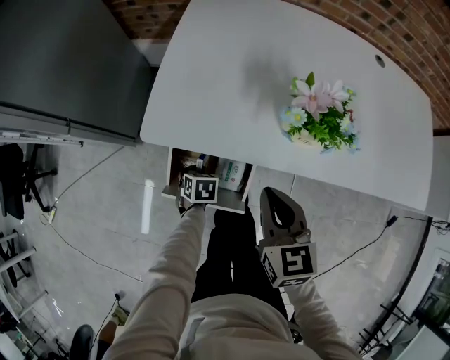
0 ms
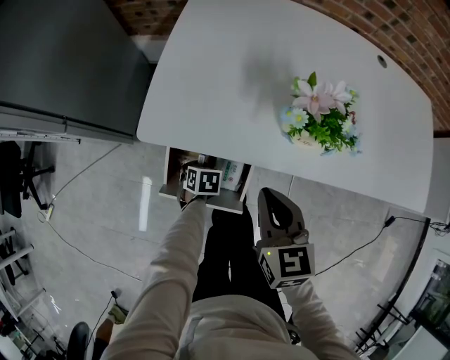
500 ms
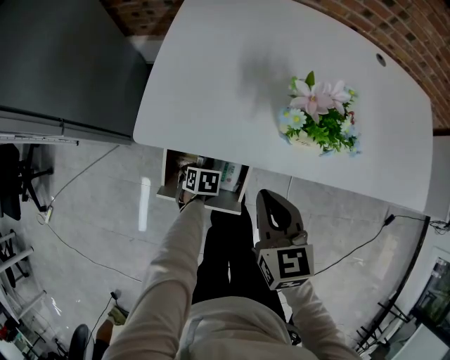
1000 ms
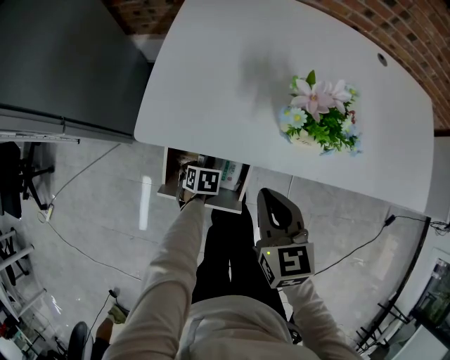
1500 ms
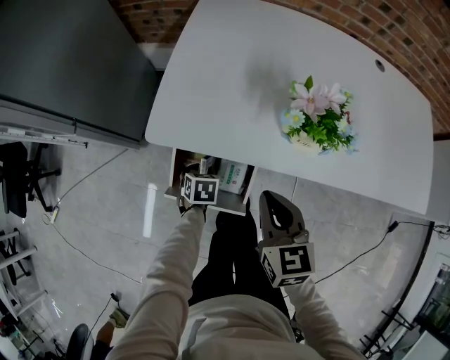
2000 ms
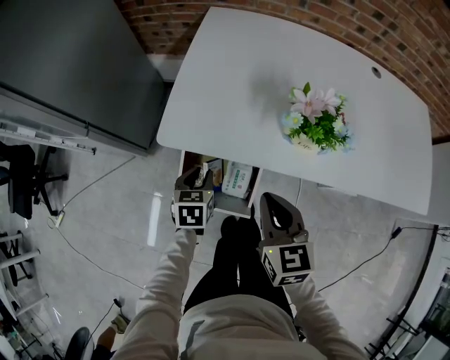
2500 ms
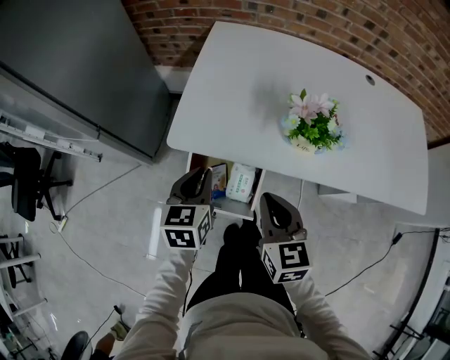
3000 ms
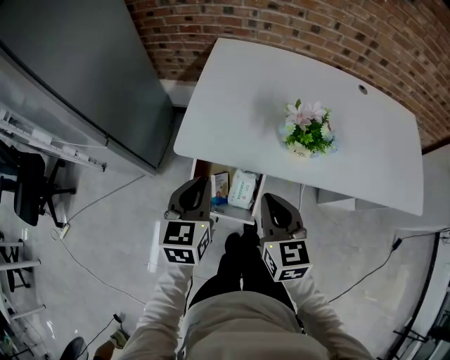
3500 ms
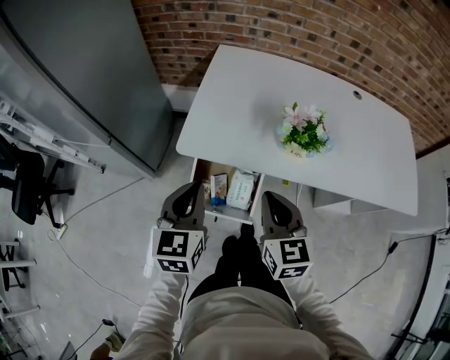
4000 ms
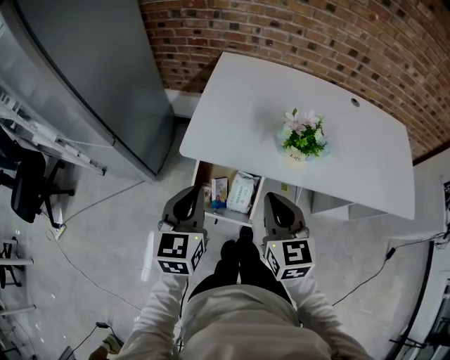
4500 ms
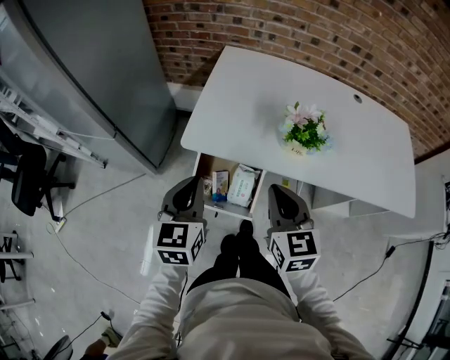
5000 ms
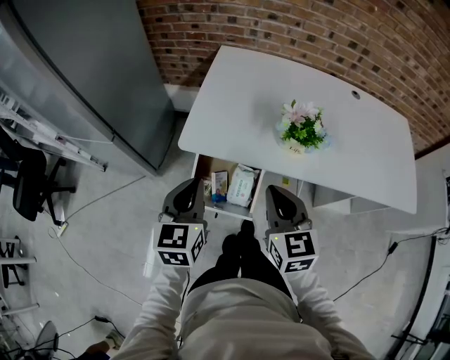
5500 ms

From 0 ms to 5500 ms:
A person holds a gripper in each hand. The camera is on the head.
From 0 ms to 2000 ms: The grippers make only small movements.
From 2000 ms to 3500 ms: The right gripper shifts some 5 cm upward. Meanwhile the left gripper moves upward, roughly 35 cm, angles its fingers upward, by roughly 40 degrees, and closes.
From 3500 ms to 5500 ms: The left gripper ends up some 5 cm from where it was.

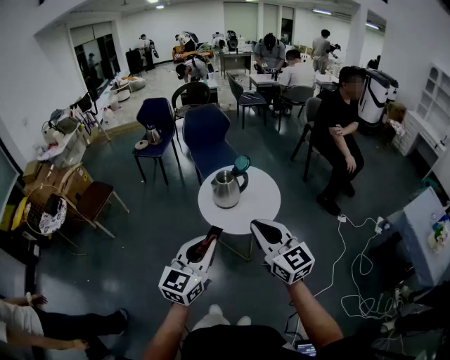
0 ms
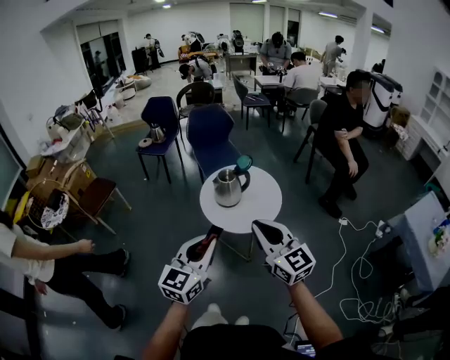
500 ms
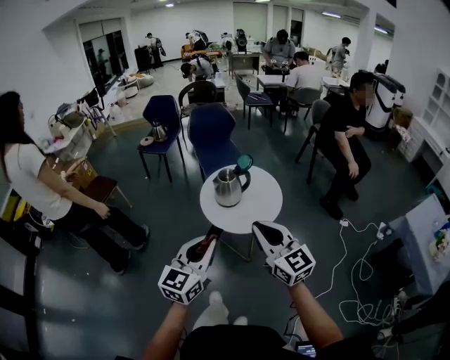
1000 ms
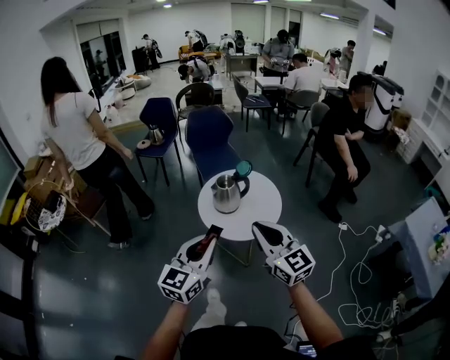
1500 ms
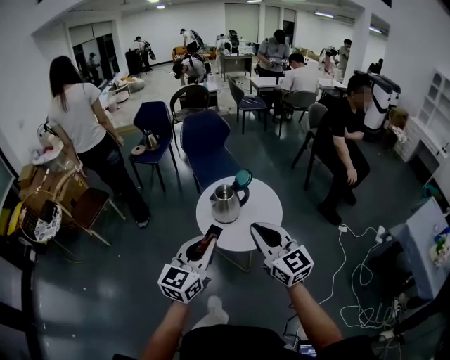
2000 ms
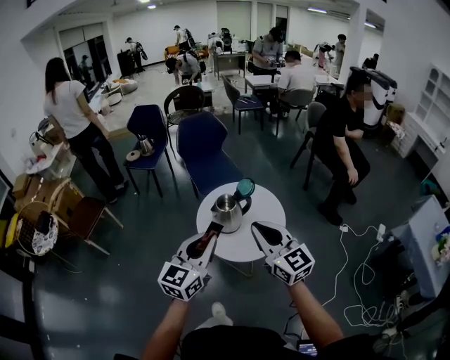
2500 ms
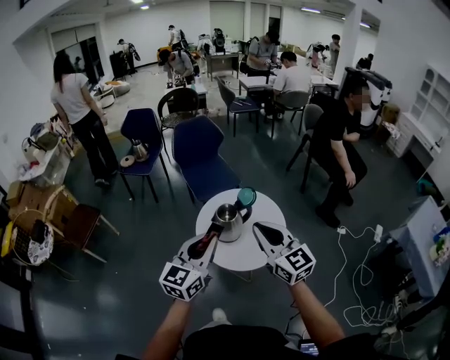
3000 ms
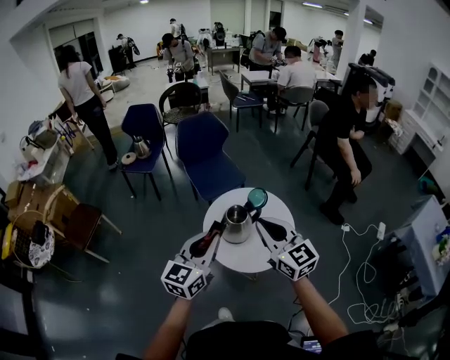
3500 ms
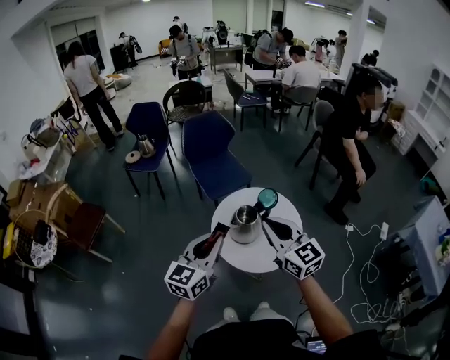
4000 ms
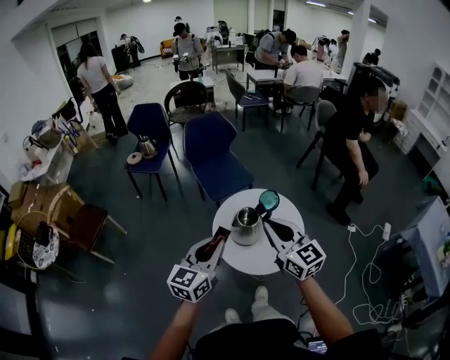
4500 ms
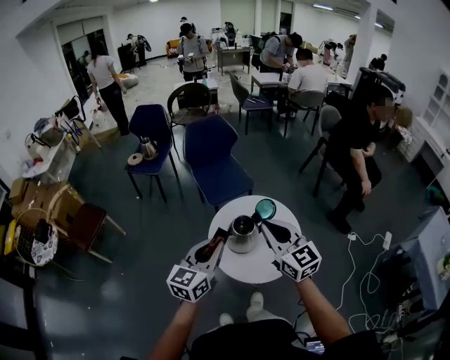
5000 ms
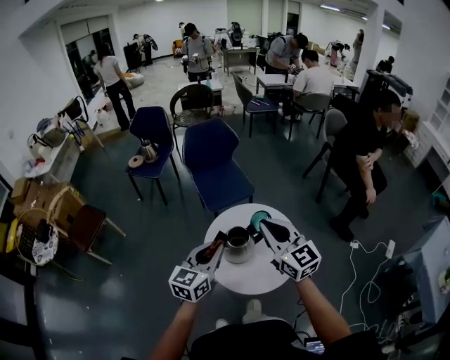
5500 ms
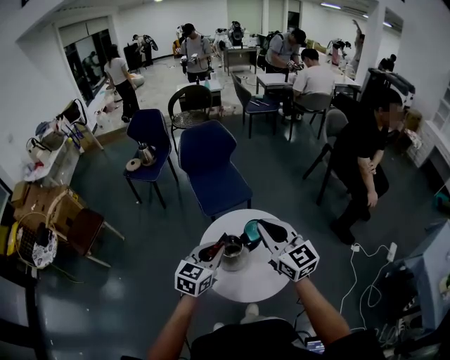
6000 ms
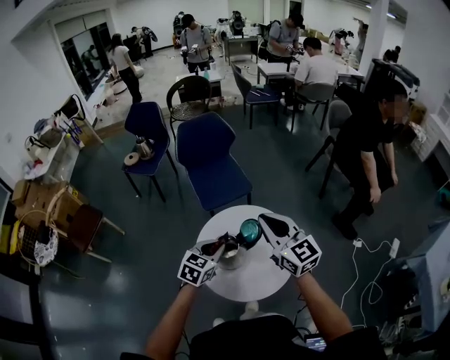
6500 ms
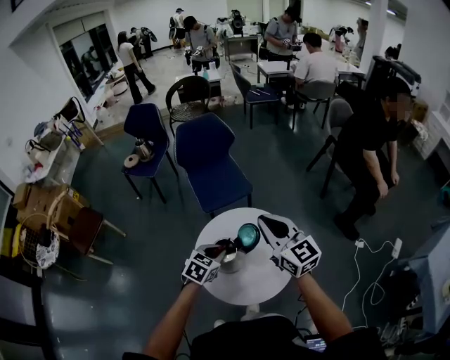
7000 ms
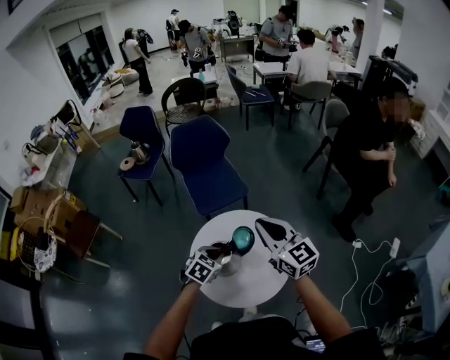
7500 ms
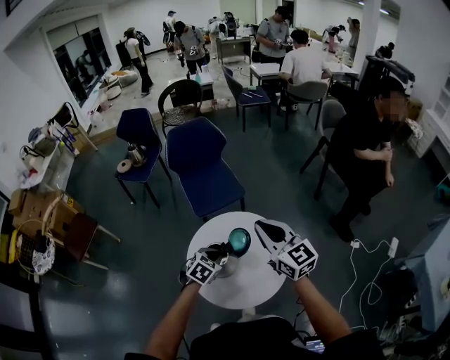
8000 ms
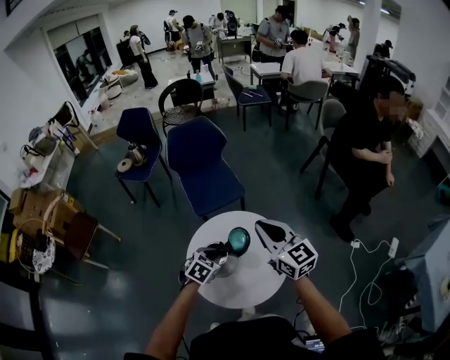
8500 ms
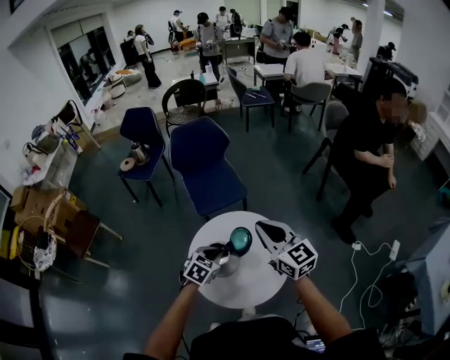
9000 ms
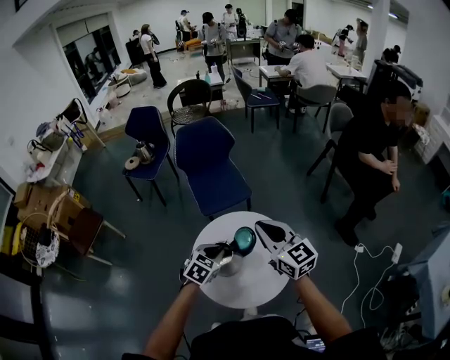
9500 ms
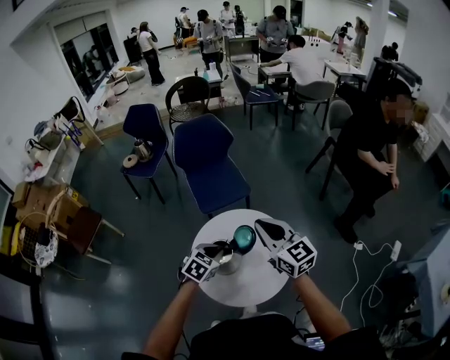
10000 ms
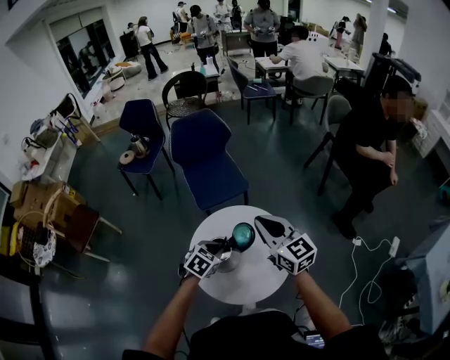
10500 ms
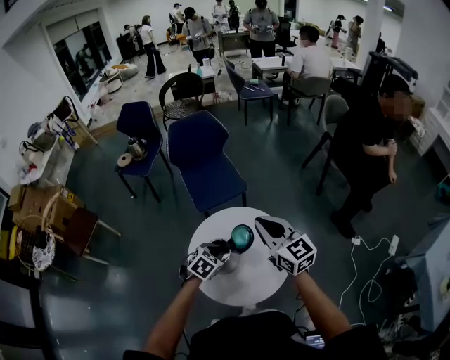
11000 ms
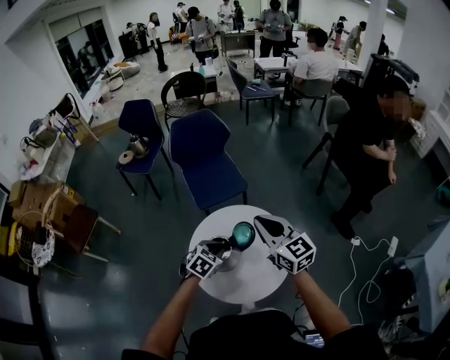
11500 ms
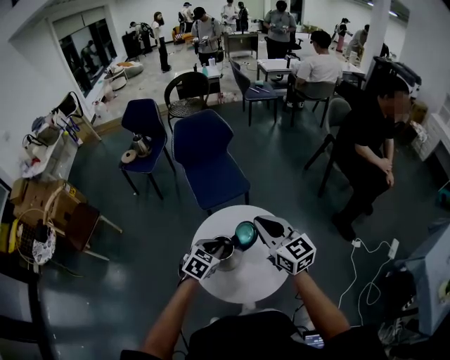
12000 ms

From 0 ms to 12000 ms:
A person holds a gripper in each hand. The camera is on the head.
From 0 ms to 2000 ms: The grippers both shift forward by roughly 10 cm.
From 2000 ms to 4000 ms: The grippers both shift forward and to the left by roughly 25 cm.
From 4000 ms to 6000 ms: The left gripper heads forward, to the right and downward, covering approximately 25 cm, while the right gripper shifts about 20 cm forward and to the right.
From 6000 ms to 8000 ms: The right gripper heads to the right and forward, covering approximately 10 cm, while the left gripper shifts approximately 20 cm downward, forward and to the right, and angles its fingers downward, by approximately 30 degrees.
From 8000 ms to 12000 ms: The grippers stay close to where they were, moving slightly.

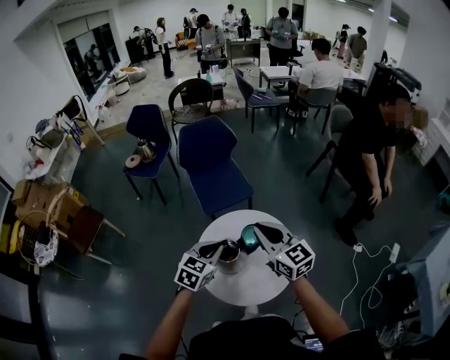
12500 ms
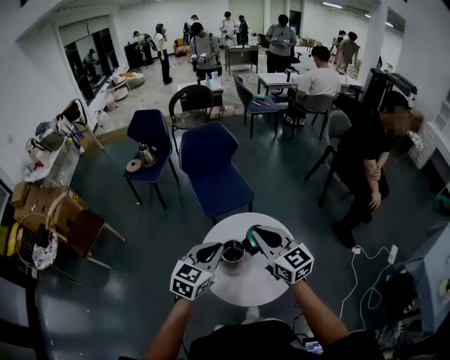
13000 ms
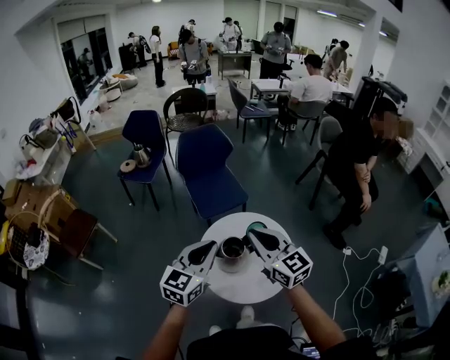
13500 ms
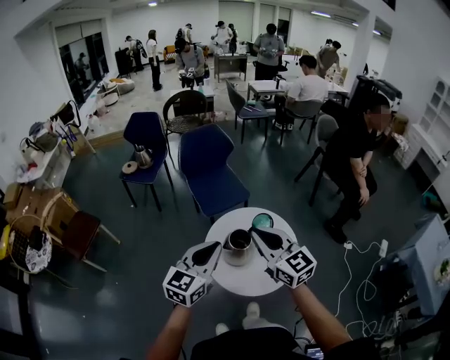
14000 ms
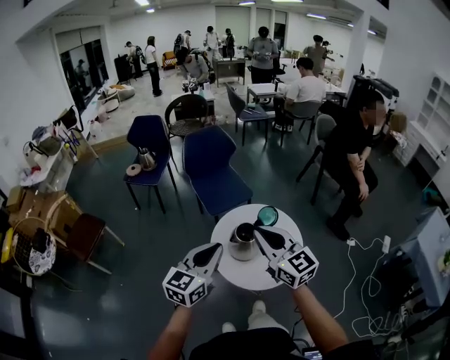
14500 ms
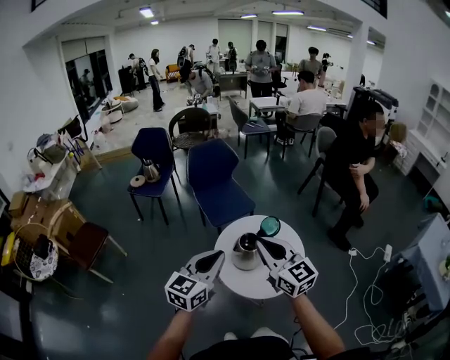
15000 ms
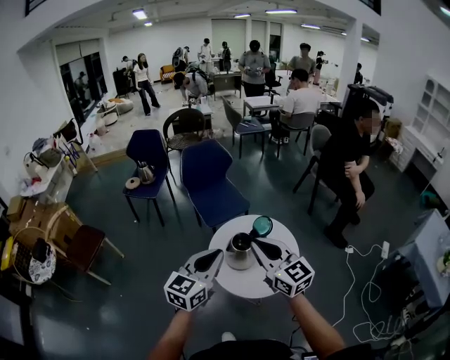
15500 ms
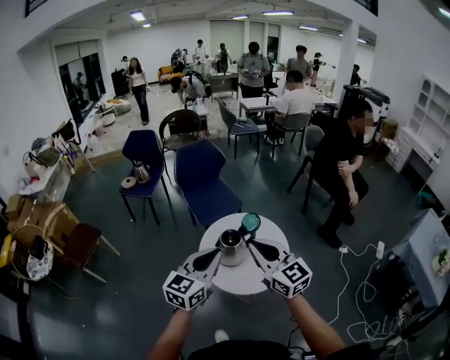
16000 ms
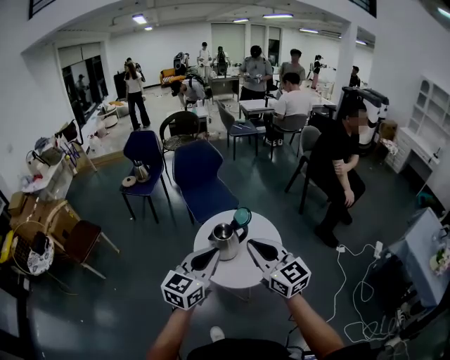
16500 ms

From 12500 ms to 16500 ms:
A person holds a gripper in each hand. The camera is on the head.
From 12500 ms to 14500 ms: The left gripper travels backward, to the left and upward by approximately 25 cm, and turns by approximately 30 degrees; the right gripper heads backward and to the left, covering approximately 25 cm.
From 14500 ms to 16500 ms: The right gripper travels backward and to the right by roughly 15 cm, while the left gripper travels to the right and backward by approximately 15 cm.

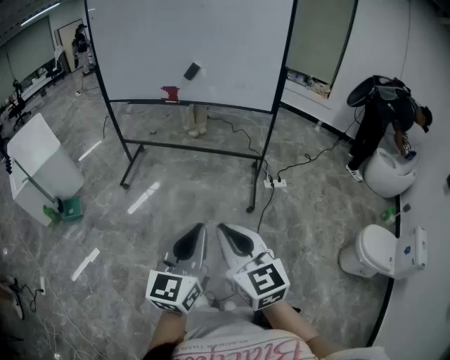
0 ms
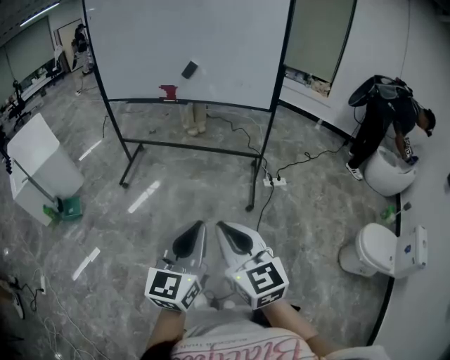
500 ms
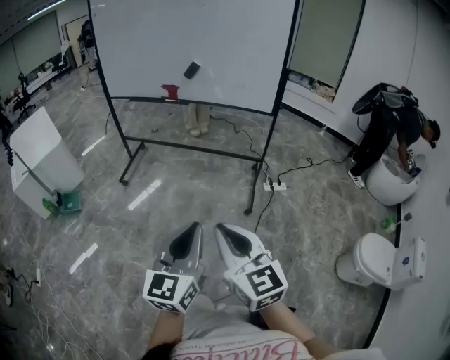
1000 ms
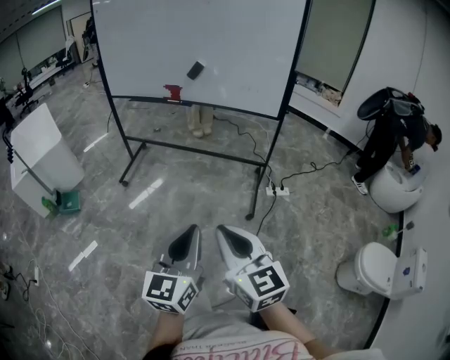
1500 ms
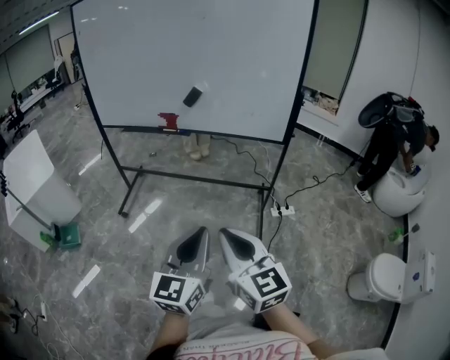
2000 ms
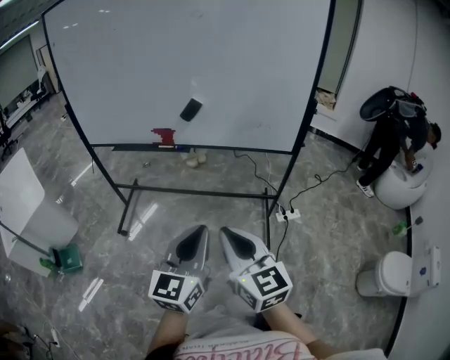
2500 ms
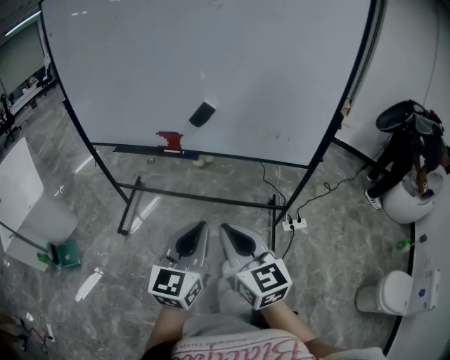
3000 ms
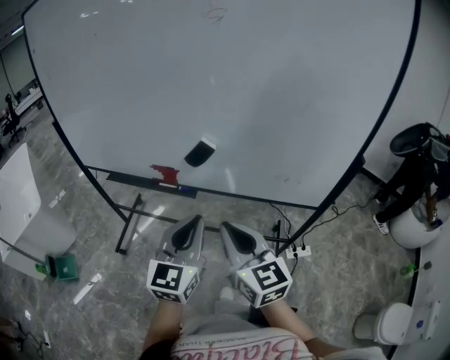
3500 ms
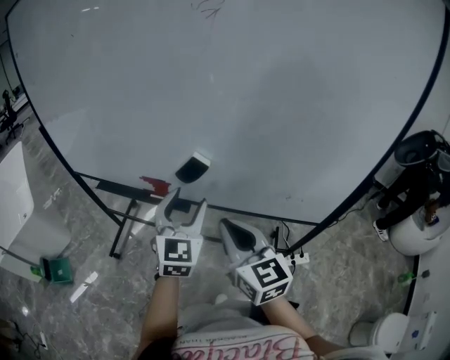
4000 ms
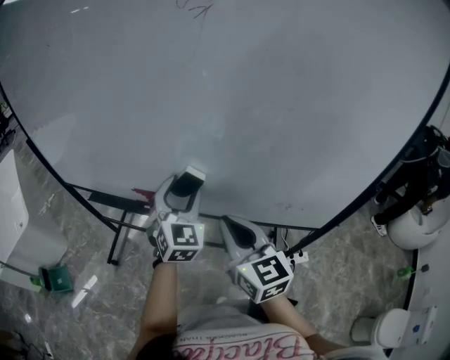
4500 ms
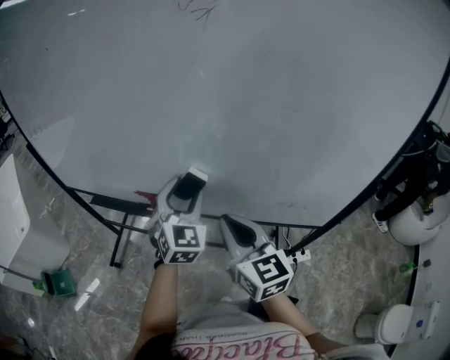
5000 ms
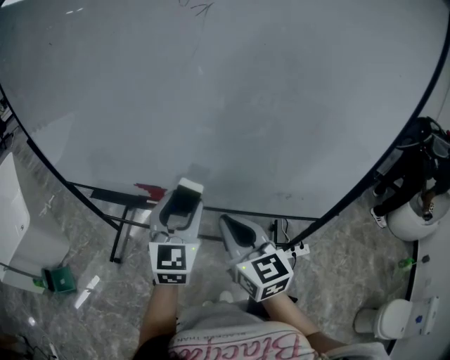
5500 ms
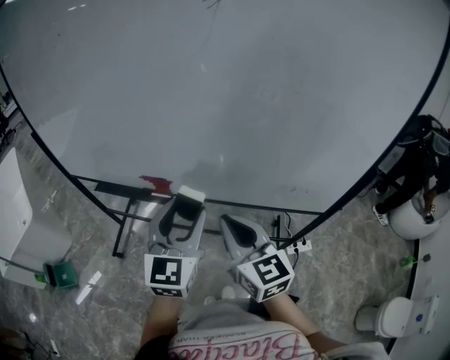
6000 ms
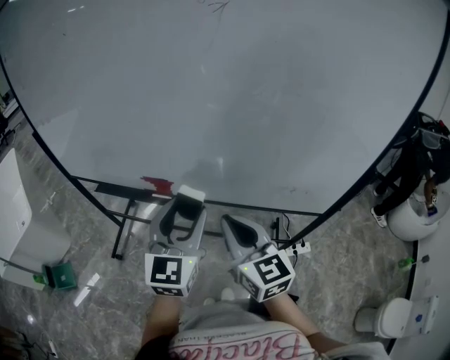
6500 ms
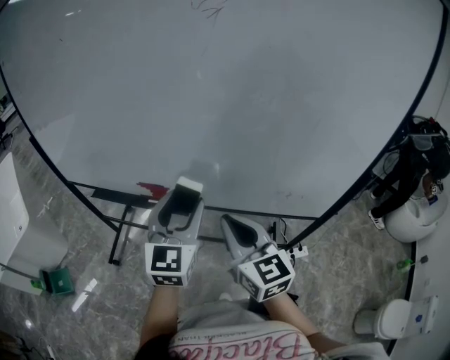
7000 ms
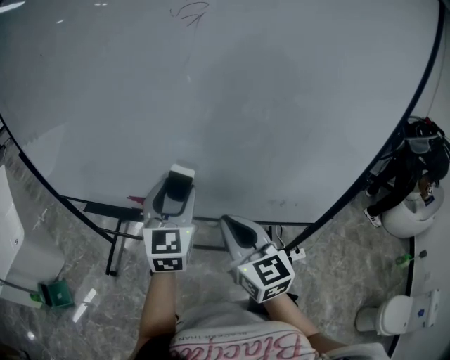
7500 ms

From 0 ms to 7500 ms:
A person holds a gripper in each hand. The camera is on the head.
From 0 ms to 2000 ms: Both grippers travel together forward, roughly 20 cm.
From 2000 ms to 4000 ms: The two grippers travel together, forward, approximately 50 cm. The left gripper rotates about 30 degrees, and opens its fingers.
From 4000 ms to 5500 ms: The left gripper reaches about 10 cm forward, then returns.
From 5500 ms to 7500 ms: The left gripper ends up about 5 cm from where it was.
